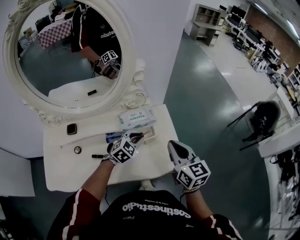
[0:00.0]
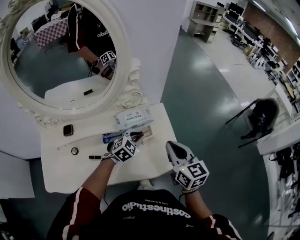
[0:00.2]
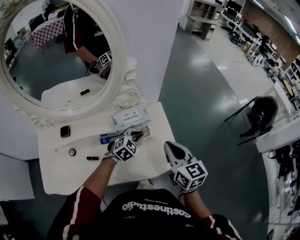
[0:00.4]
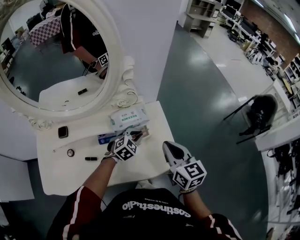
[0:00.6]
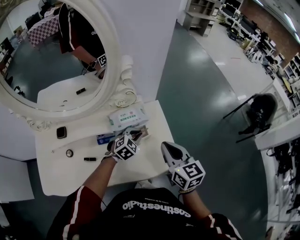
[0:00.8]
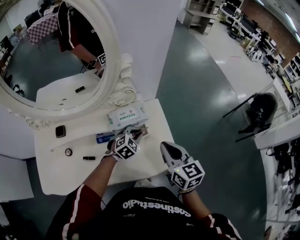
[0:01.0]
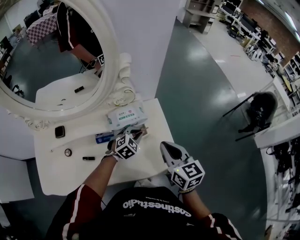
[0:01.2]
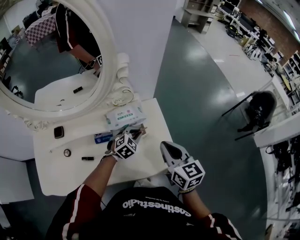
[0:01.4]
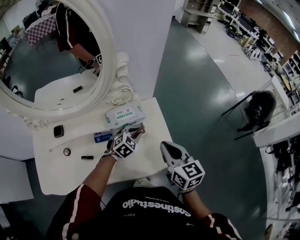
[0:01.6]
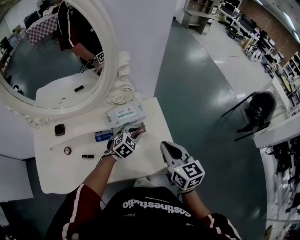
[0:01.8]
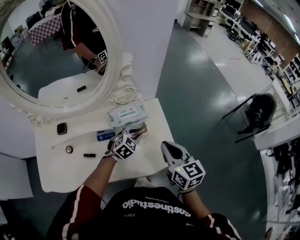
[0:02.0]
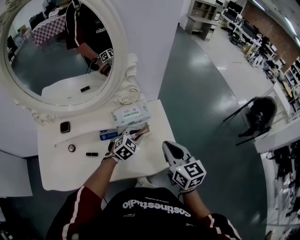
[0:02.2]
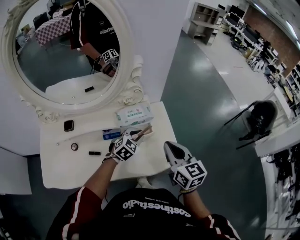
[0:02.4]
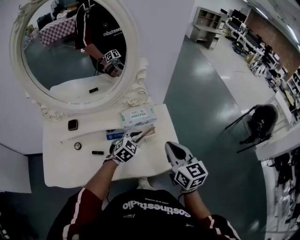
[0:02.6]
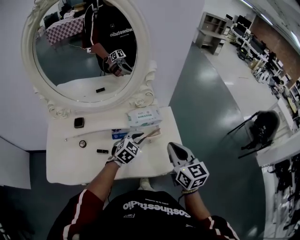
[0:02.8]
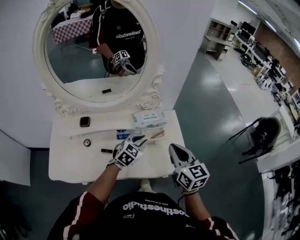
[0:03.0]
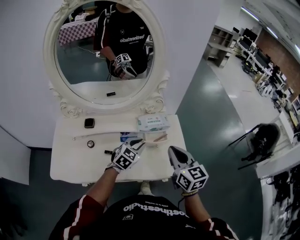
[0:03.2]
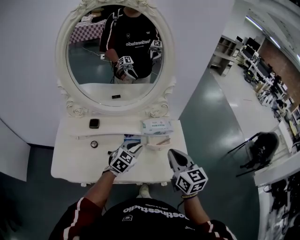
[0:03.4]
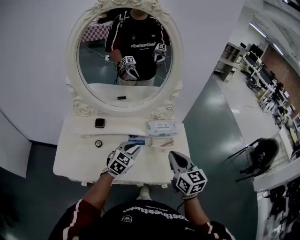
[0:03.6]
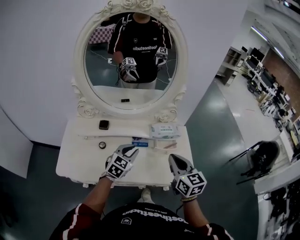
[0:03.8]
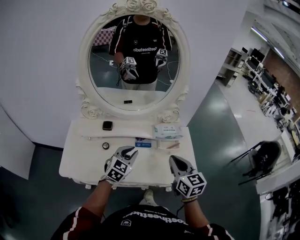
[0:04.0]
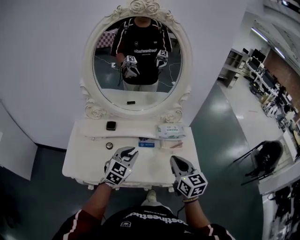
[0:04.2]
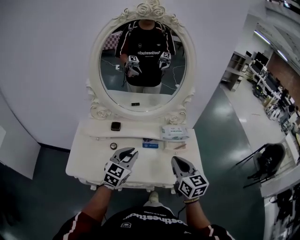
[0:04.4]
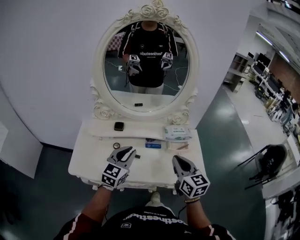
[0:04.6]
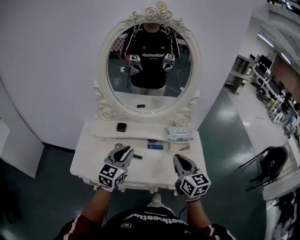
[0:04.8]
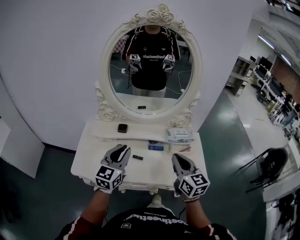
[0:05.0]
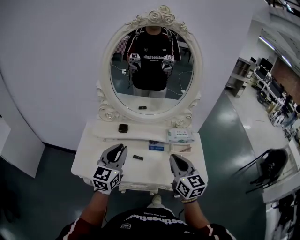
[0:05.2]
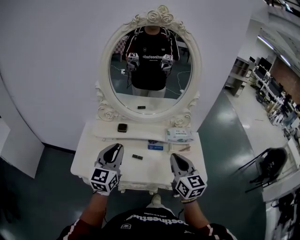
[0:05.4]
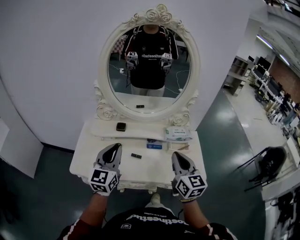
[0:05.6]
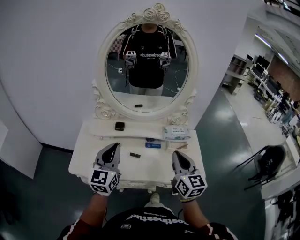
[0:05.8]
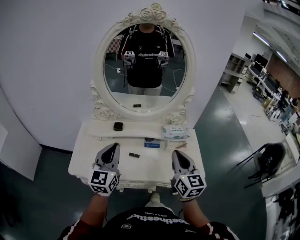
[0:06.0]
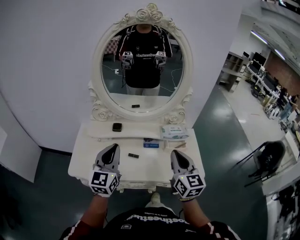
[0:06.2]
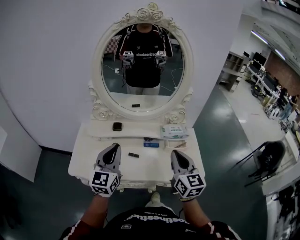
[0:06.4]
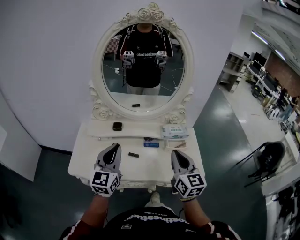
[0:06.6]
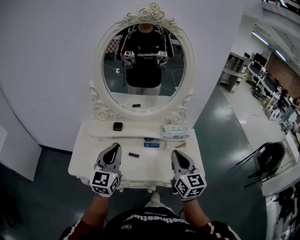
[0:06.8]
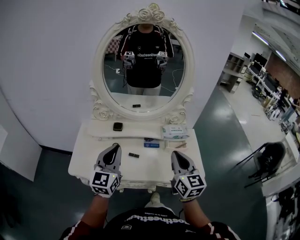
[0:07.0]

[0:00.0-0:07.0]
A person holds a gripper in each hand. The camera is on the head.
0:00.0 to 0:01.4: The left gripper goes about 5 cm downward.
0:01.4 to 0:02.8: The left gripper goes about 10 cm upward, backward and to the left. Meanwhile the right gripper moves about 5 cm.
0:02.8 to 0:04.2: The right gripper goes roughly 15 cm to the left and backward. The left gripper shifts roughly 25 cm to the left, backward and upward, and rotates about 20 degrees.
0:04.2 to 0:05.6: The left gripper goes approximately 20 cm to the left, upward and backward, and turns by some 30 degrees. The right gripper is displaced upward by roughly 5 cm.
0:05.6 to 0:07.0: There are only small adjustments of the grippers.

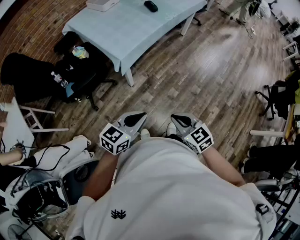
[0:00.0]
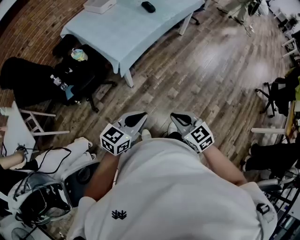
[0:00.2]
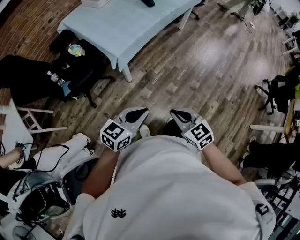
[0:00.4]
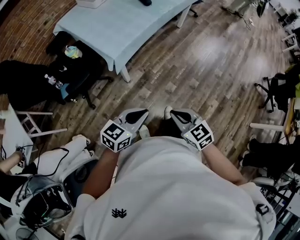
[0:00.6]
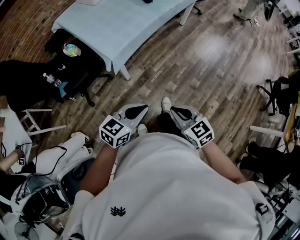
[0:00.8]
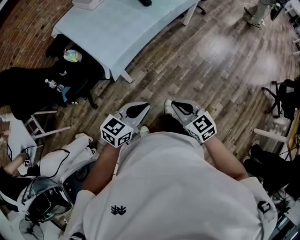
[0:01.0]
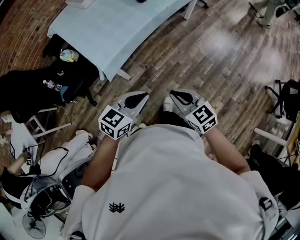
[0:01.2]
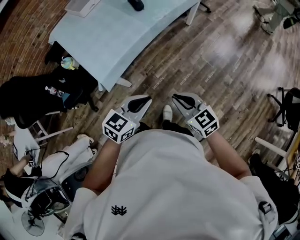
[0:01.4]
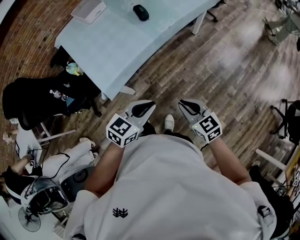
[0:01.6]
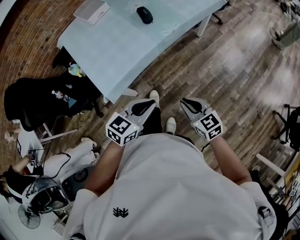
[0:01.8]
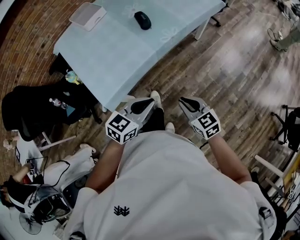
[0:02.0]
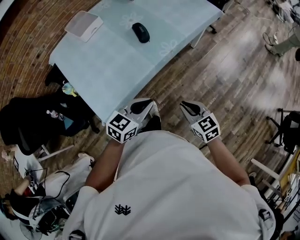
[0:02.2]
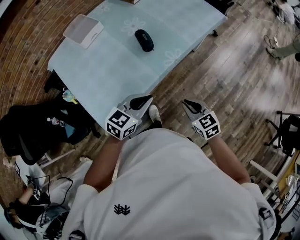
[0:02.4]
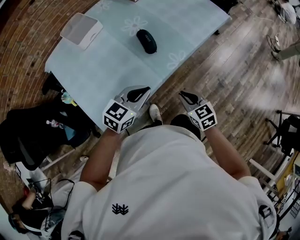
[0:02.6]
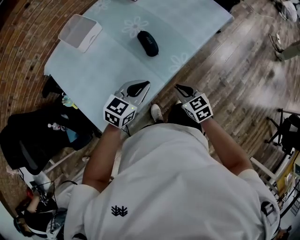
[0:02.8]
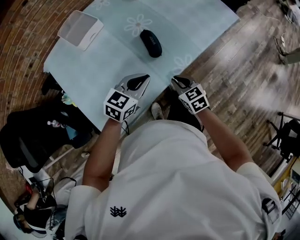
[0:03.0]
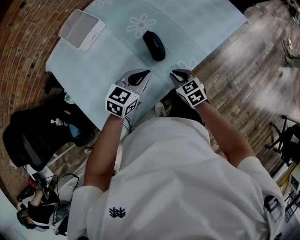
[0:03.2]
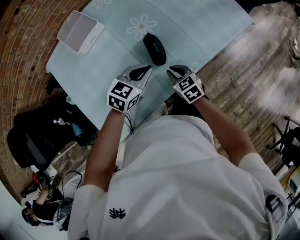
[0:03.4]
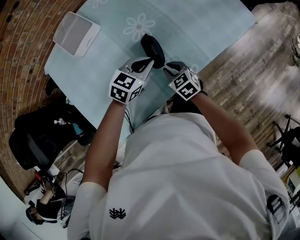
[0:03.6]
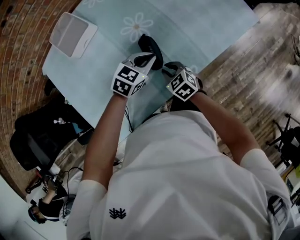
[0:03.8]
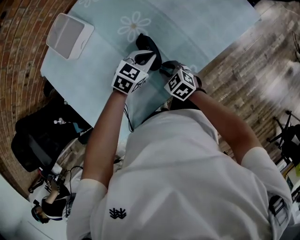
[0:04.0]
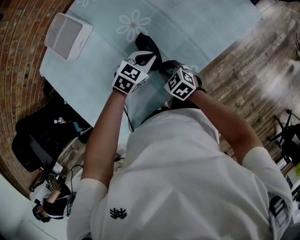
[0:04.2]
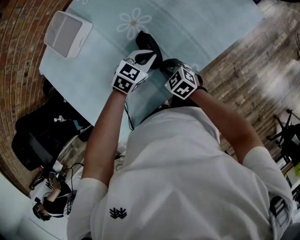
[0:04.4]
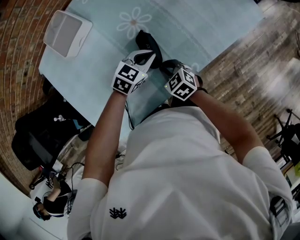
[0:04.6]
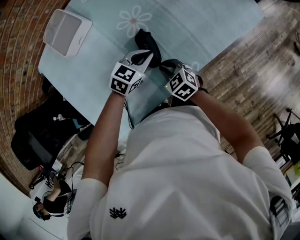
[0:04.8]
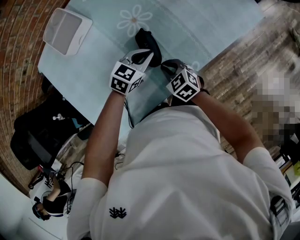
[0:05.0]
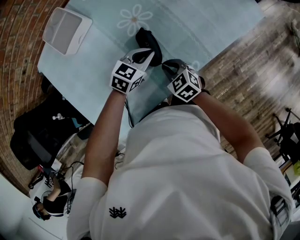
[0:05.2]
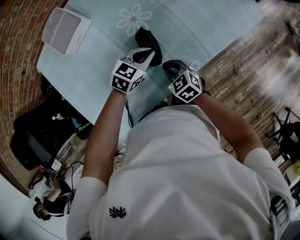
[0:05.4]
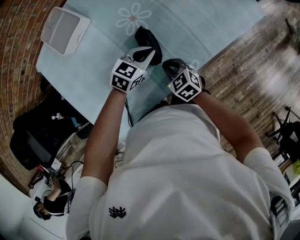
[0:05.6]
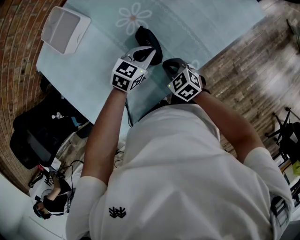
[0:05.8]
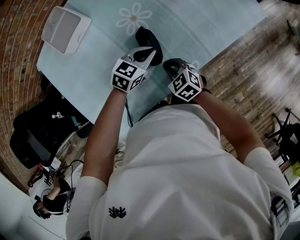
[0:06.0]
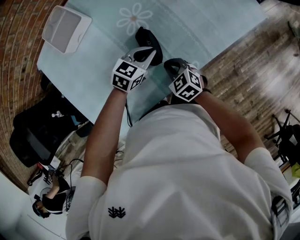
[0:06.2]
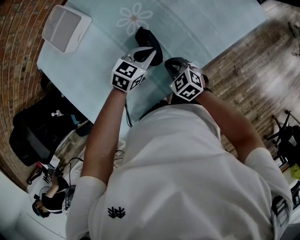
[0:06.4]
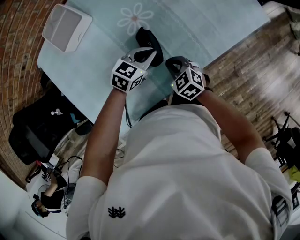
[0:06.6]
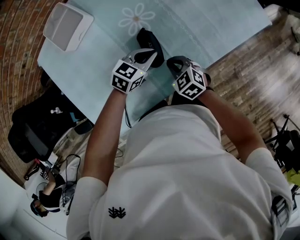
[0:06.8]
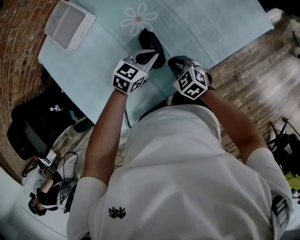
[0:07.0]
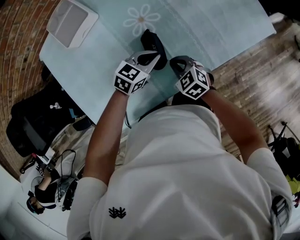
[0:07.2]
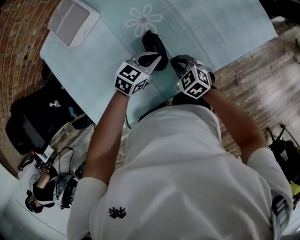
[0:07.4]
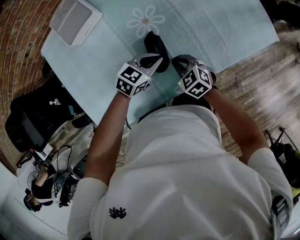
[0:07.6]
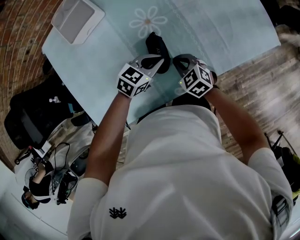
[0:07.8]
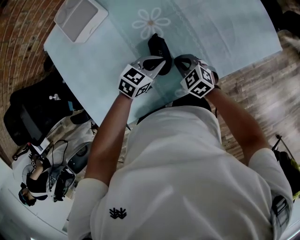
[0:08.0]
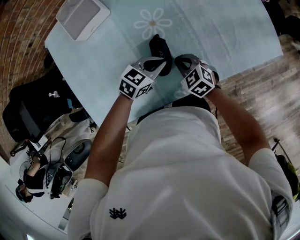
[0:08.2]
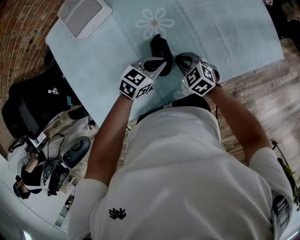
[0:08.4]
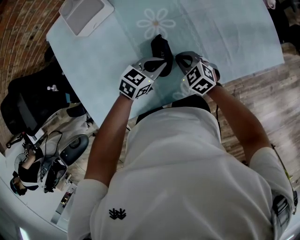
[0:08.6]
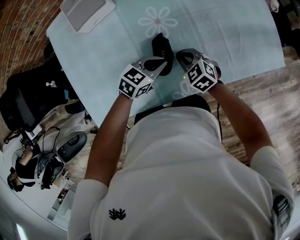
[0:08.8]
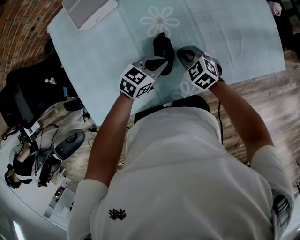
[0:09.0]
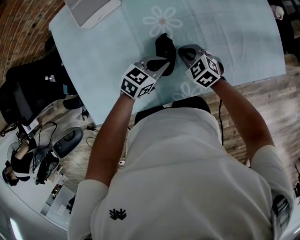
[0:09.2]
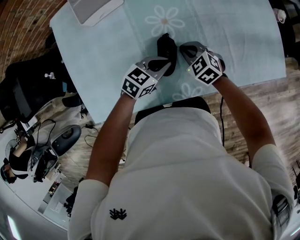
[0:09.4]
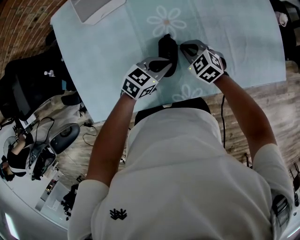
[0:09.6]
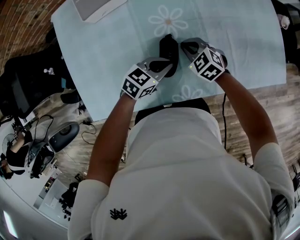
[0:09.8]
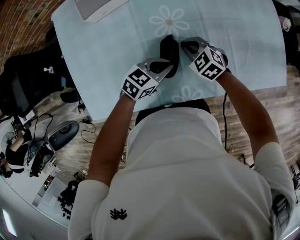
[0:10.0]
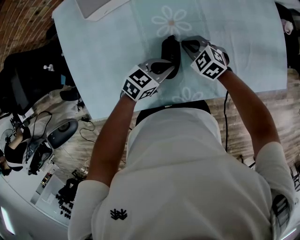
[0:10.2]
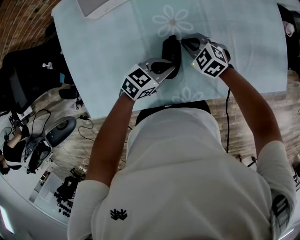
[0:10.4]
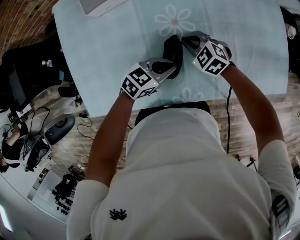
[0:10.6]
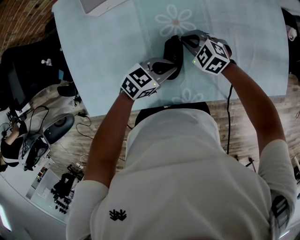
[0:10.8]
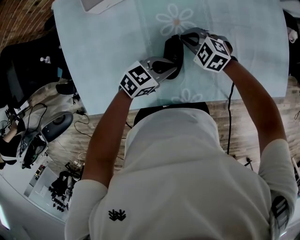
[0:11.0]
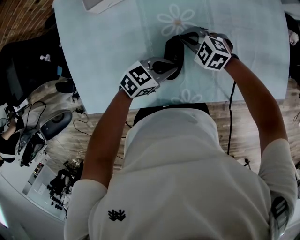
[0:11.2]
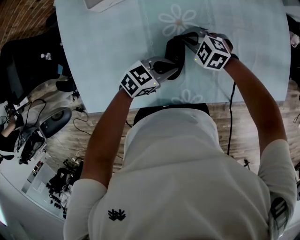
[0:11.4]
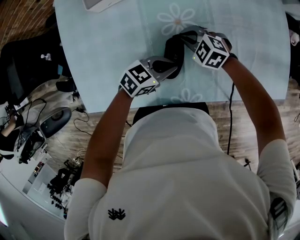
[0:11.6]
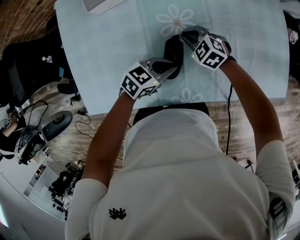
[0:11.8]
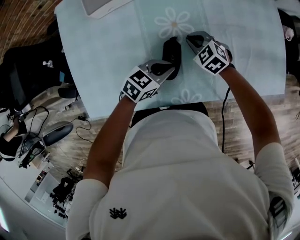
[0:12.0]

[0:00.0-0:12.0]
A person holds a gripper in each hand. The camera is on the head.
0:00.0 to 0:01.6: The two grippers go roughly 35 cm forward and to the right.
0:01.6 to 0:03.0: Both grippers are carried forward, about 40 cm.
0:03.0 to 0:04.4: Both grippers move forward and downward, approximately 20 cm. The right gripper changes its angle by approximately 20 degrees.
0:04.4 to 0:06.0: The grippers make only small movements.
0:06.0 to 0:07.6: The right gripper heads forward, covering some 5 cm.
0:07.6 to 0:09.0: The right gripper moves forward, roughly 5 cm.
0:09.0 to 0:10.4: The right gripper ends up some 5 cm from where it was.
0:10.4 to 0:12.0: There are only small adjustments of the grippers.

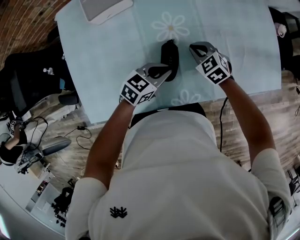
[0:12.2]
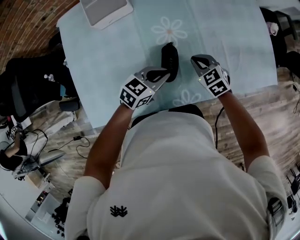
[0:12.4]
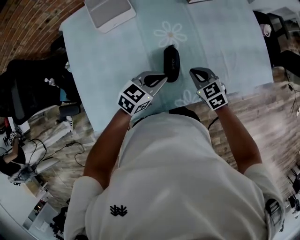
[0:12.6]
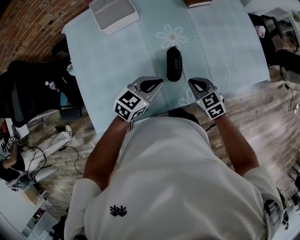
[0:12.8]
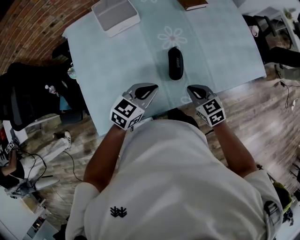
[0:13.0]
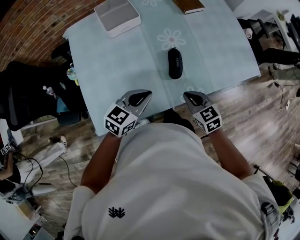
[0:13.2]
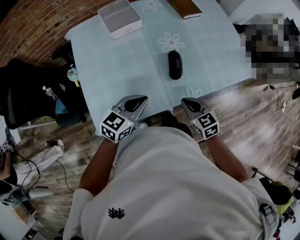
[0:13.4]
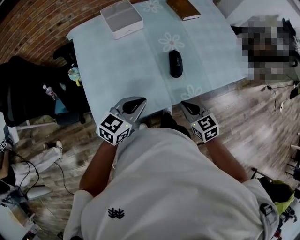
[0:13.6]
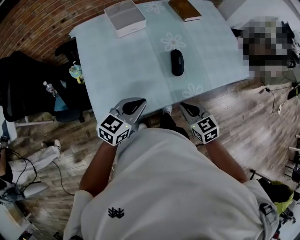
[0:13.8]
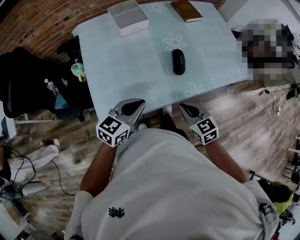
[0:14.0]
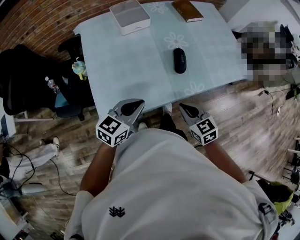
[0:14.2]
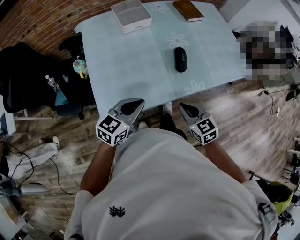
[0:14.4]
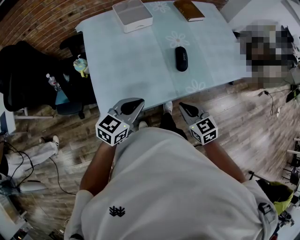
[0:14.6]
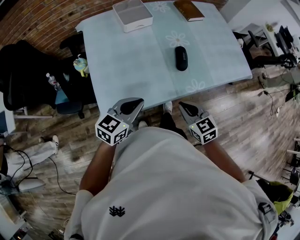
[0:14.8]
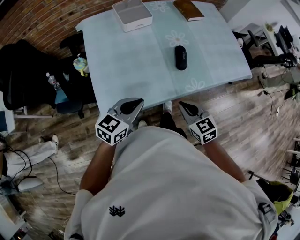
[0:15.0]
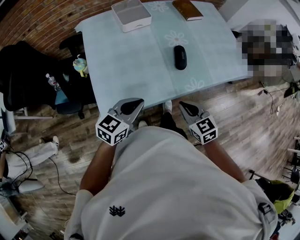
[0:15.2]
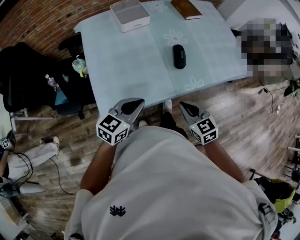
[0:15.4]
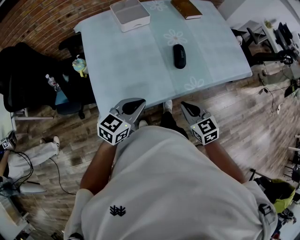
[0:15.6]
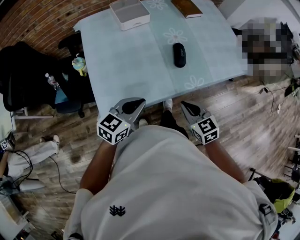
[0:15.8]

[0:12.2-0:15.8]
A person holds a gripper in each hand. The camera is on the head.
0:12.2 to 0:14.0: The left gripper moves backward, to the left and upward, about 35 cm, and swivels about 20 degrees, while the right gripper heads backward and upward, covering approximately 40 cm, and swivels about 30 degrees.
0:14.0 to 0:15.8: There are only small adjustments of the grippers.

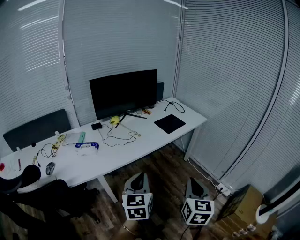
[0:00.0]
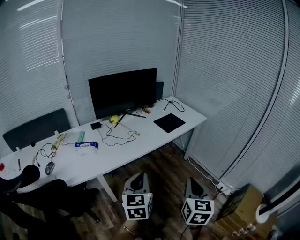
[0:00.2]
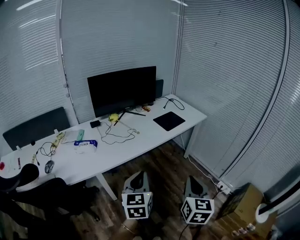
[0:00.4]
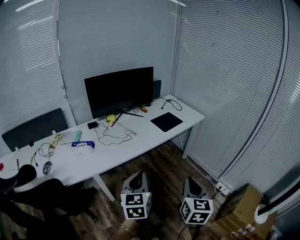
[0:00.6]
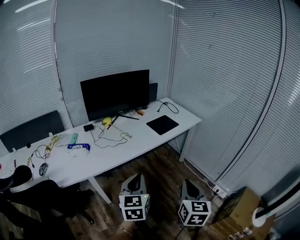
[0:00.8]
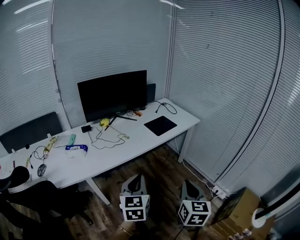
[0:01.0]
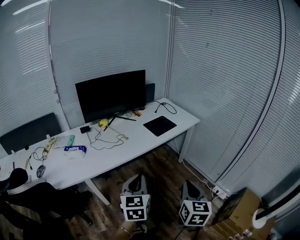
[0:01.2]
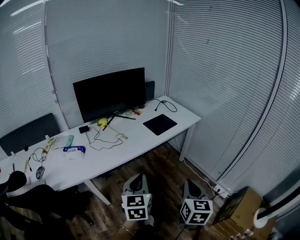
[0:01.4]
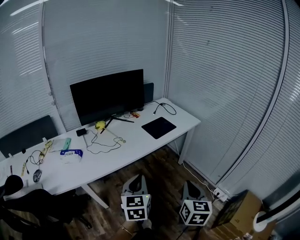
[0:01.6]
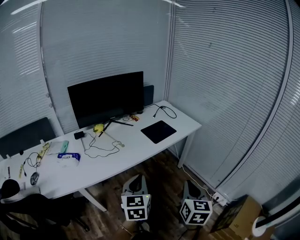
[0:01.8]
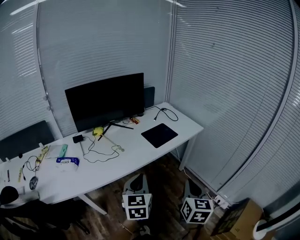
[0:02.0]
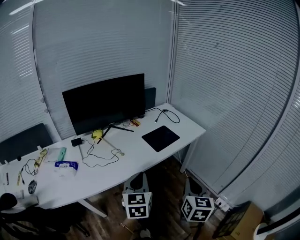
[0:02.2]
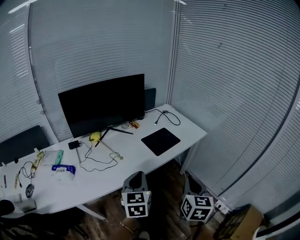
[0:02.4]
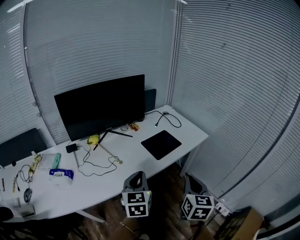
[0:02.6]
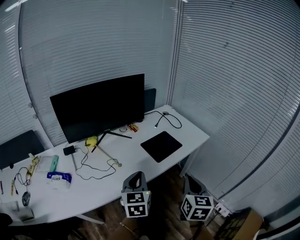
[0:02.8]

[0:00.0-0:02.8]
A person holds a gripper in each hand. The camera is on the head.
0:00.0 to 0:01.4: Both grippers travel together to the right and forward, roughly 10 cm.
0:01.4 to 0:02.8: The grippers both shift forward by approximately 25 cm.
